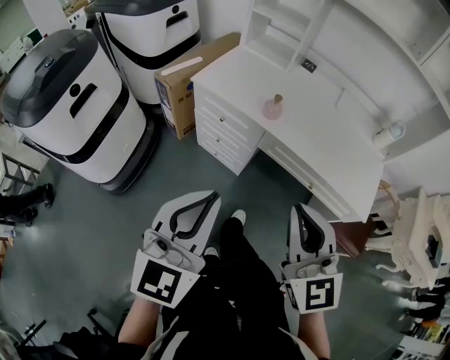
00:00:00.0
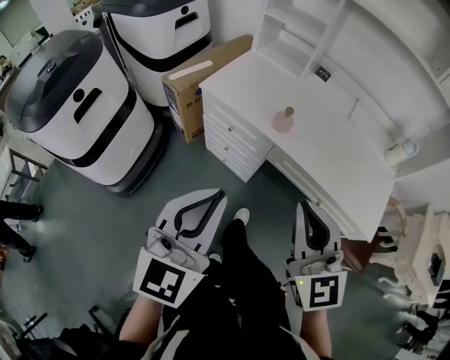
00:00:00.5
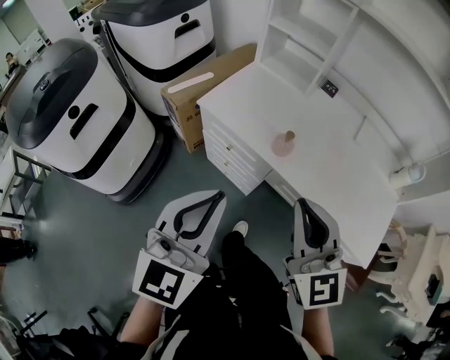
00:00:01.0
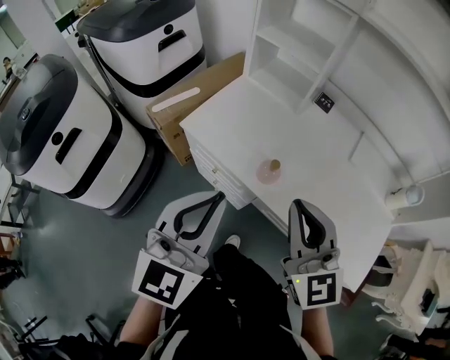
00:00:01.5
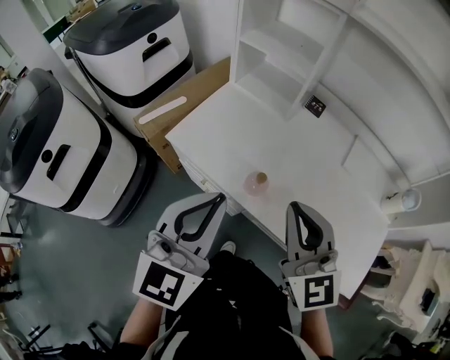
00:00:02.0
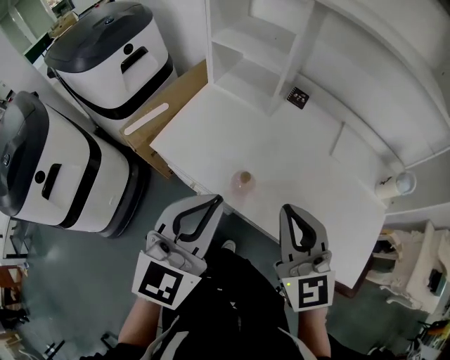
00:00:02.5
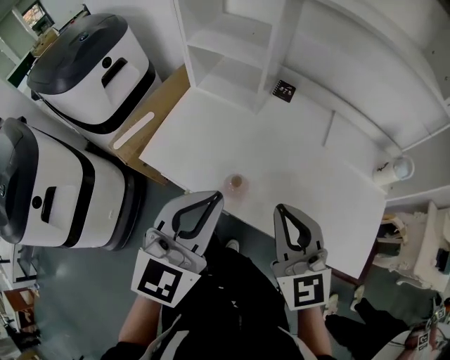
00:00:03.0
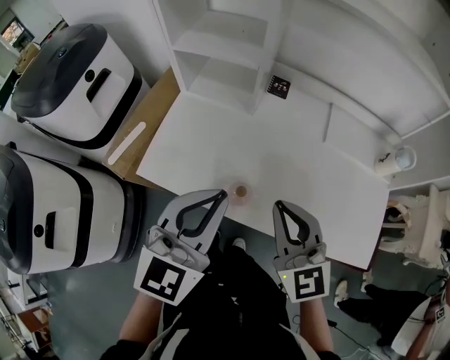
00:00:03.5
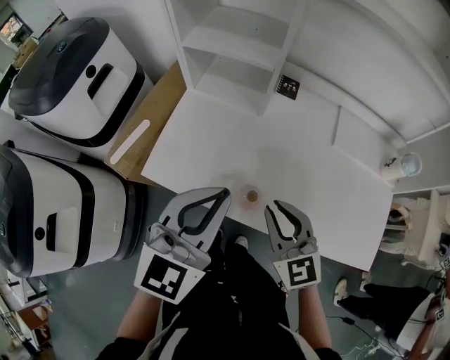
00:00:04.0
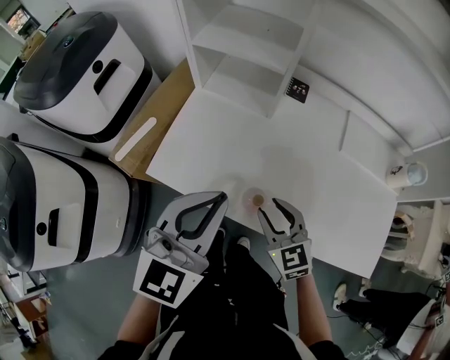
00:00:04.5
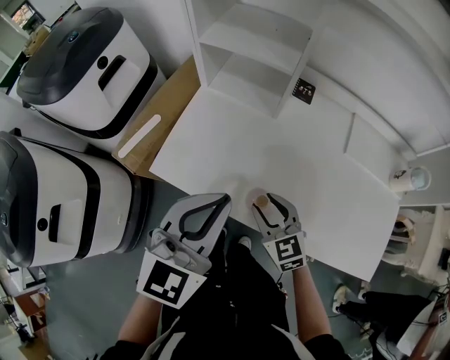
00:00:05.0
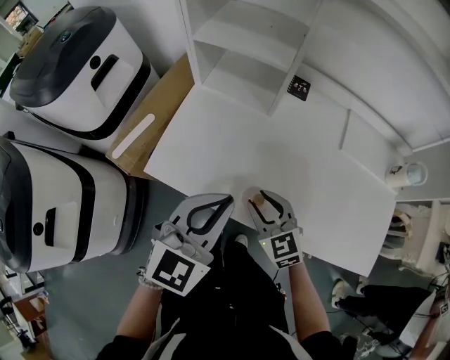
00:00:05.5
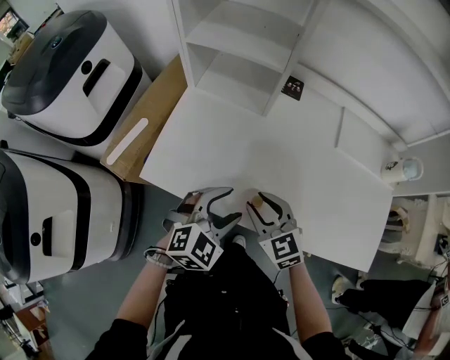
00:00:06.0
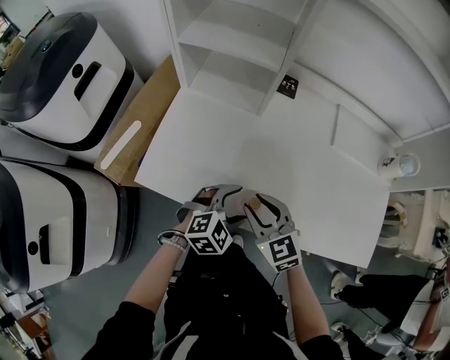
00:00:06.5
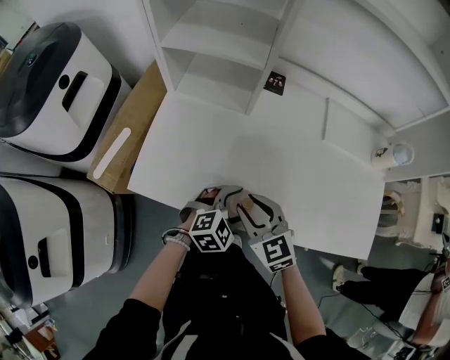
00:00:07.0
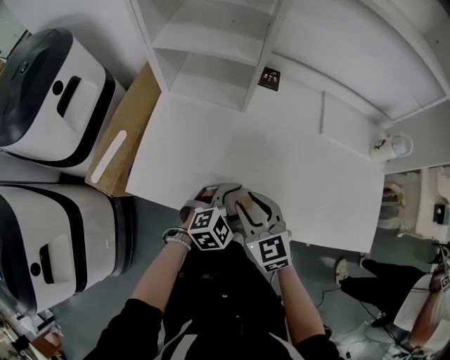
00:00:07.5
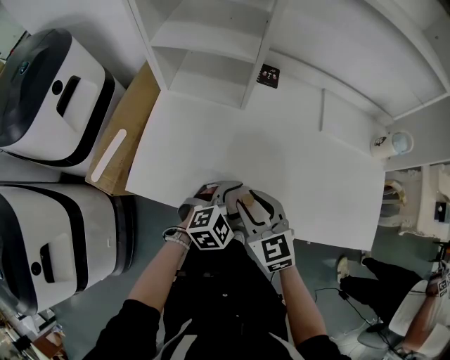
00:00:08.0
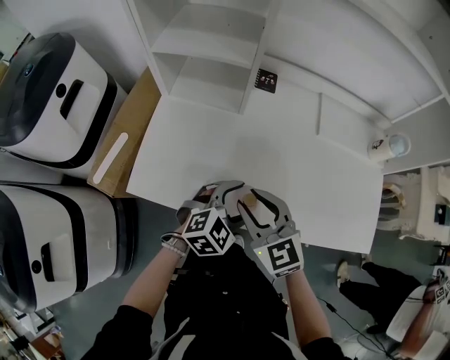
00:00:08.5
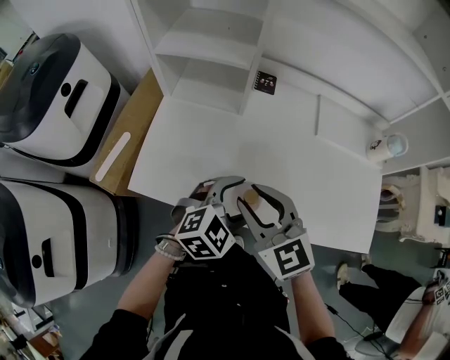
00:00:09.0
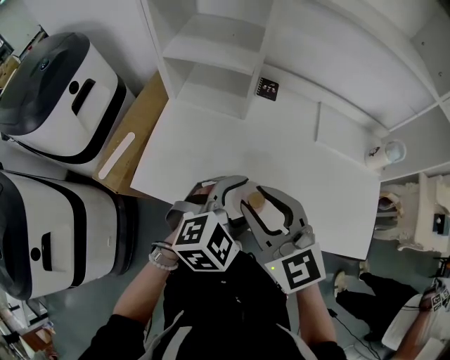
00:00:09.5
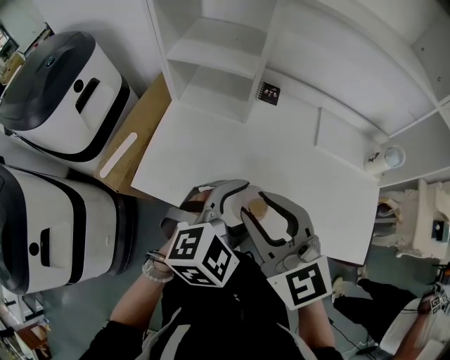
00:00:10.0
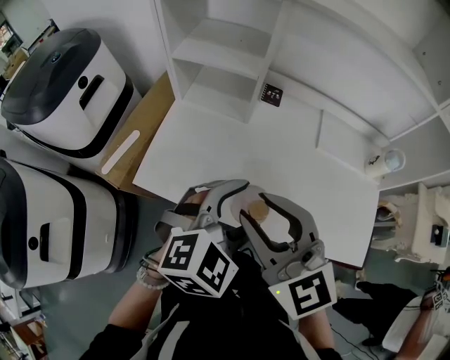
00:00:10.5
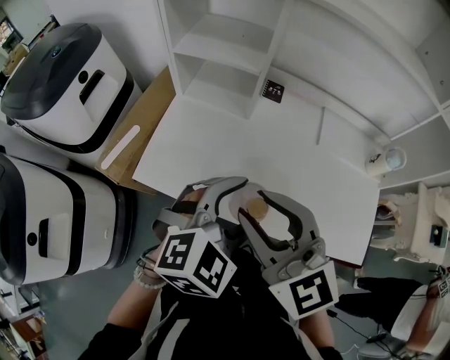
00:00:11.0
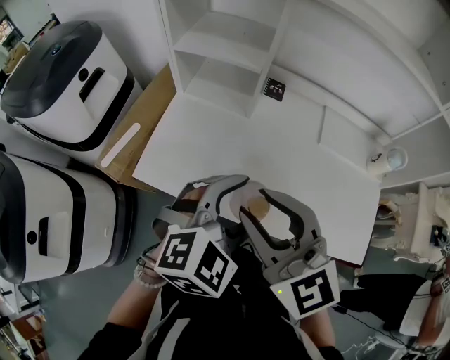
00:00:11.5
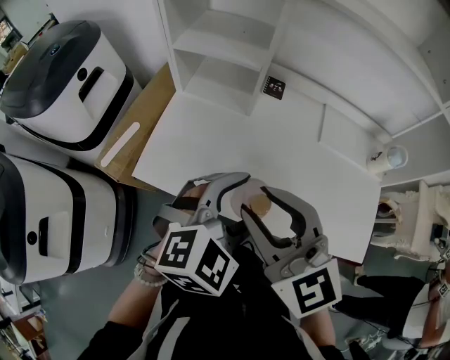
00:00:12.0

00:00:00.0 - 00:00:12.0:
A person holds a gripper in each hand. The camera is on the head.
00:00:00.0 - 00:00:02.0: The two grippers go approximately 30 cm forward.
00:00:02.0 - 00:00:04.0: The right gripper heads downward and forward, covering approximately 15 cm; the left gripper is displaced forward by about 10 cm, and turns by roughly 20 degrees.
00:00:04.0 - 00:00:06.0: The right gripper travels downward by approximately 10 cm, and opens up. The left gripper travels downward by some 20 cm, swivels about 30 degrees, and opens up.
00:00:06.0 - 00:00:08.0: The left gripper shifts some 10 cm downward and to the right.
00:00:08.0 - 00:00:10.0: Both grippers move upward, about 20 cm.
00:00:10.0 - 00:00:12.0: The grippers move only a little.

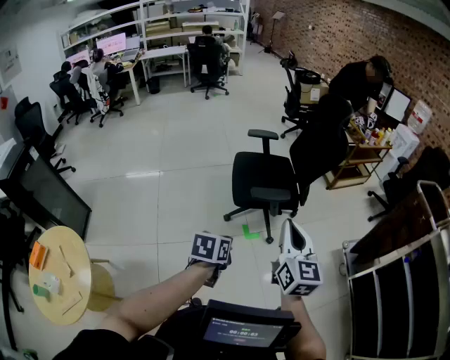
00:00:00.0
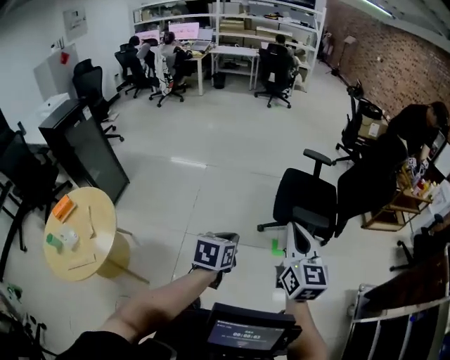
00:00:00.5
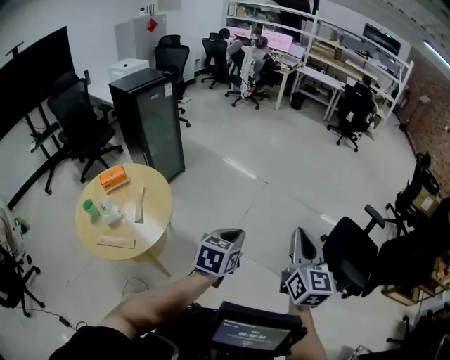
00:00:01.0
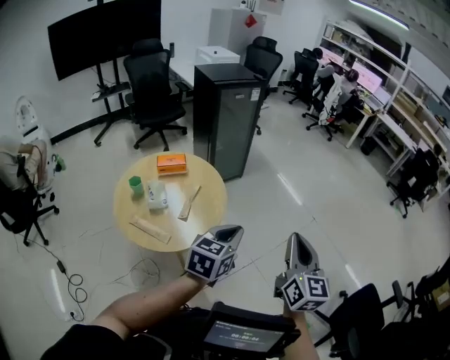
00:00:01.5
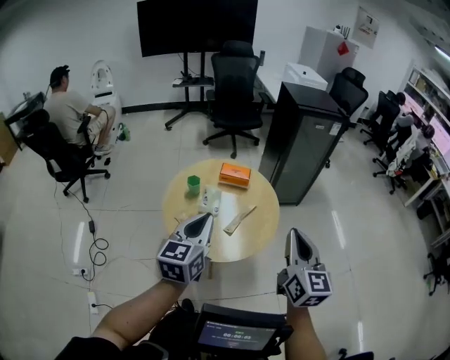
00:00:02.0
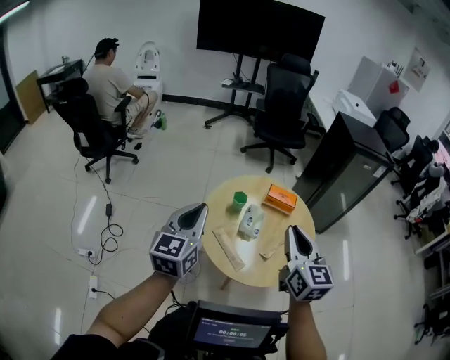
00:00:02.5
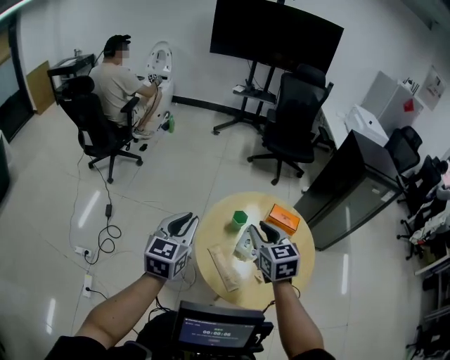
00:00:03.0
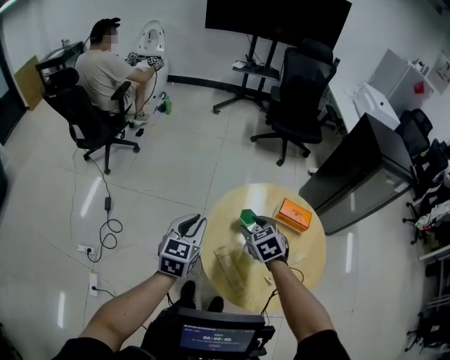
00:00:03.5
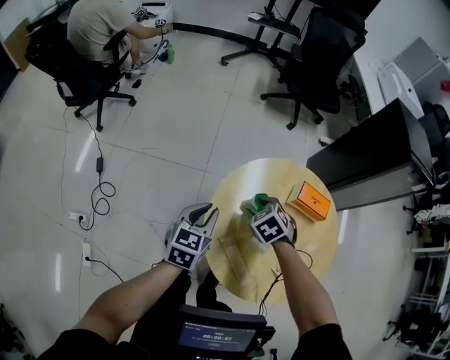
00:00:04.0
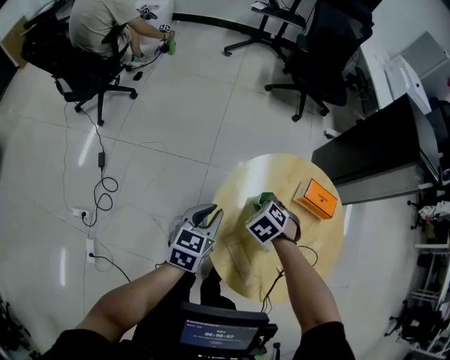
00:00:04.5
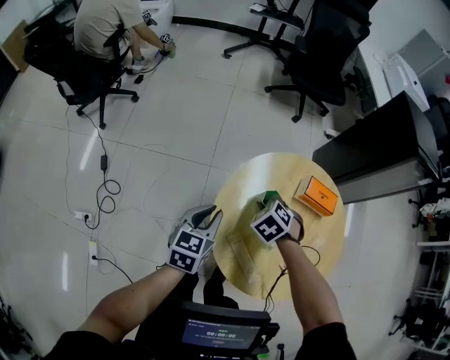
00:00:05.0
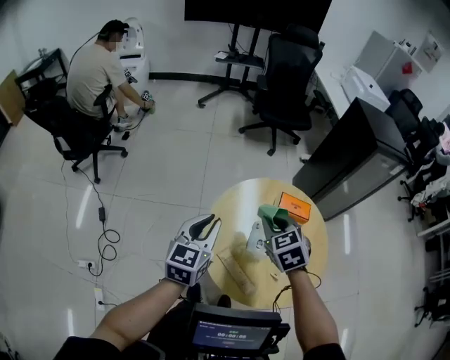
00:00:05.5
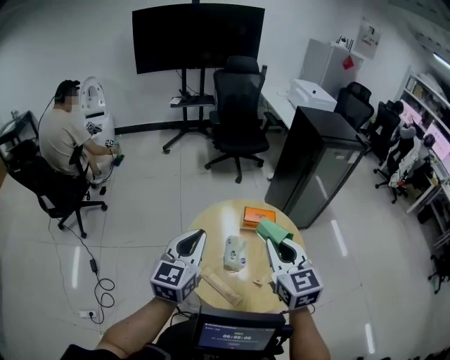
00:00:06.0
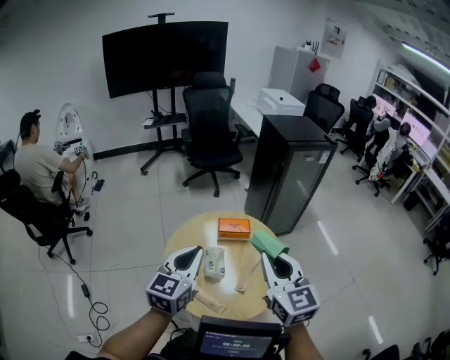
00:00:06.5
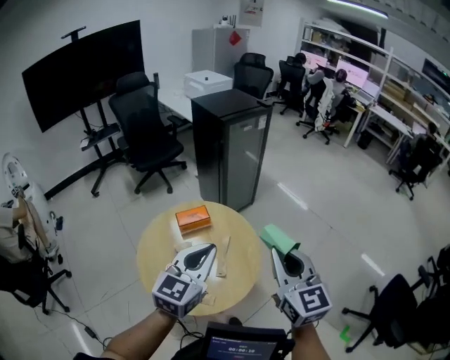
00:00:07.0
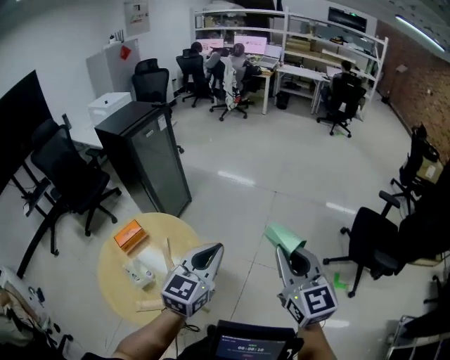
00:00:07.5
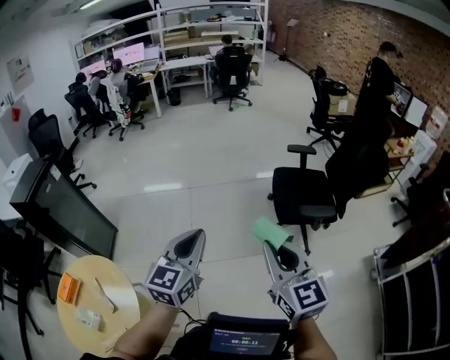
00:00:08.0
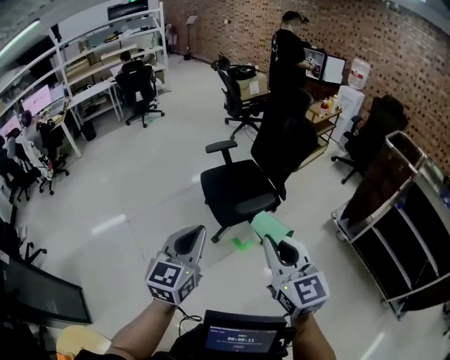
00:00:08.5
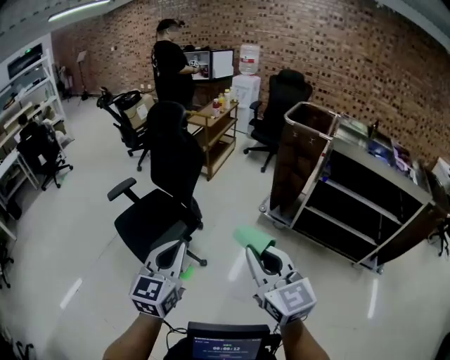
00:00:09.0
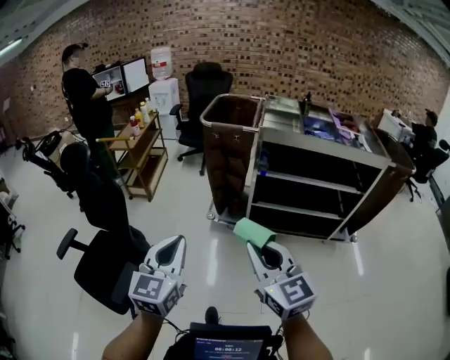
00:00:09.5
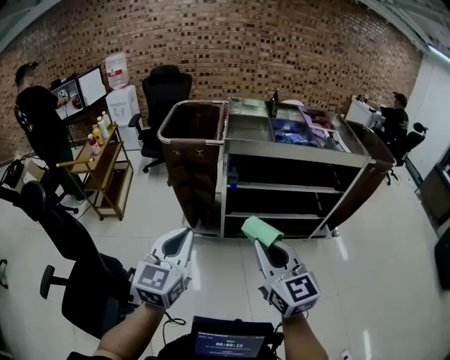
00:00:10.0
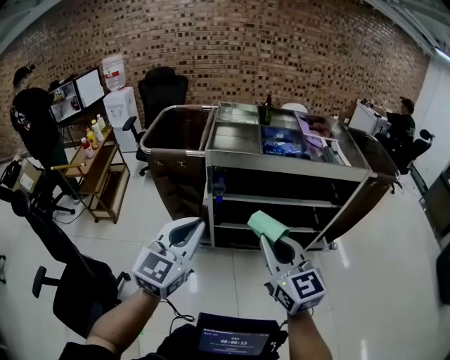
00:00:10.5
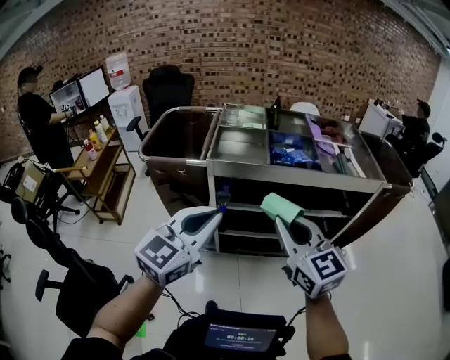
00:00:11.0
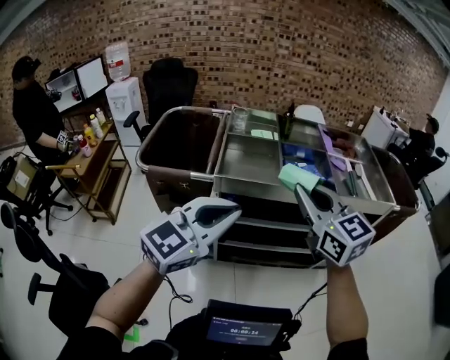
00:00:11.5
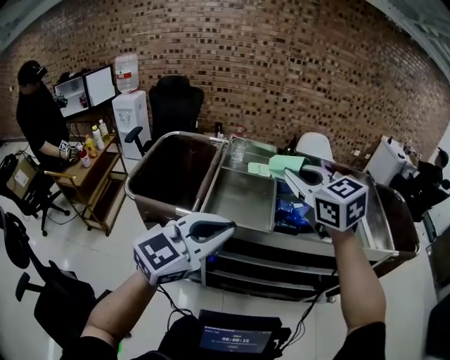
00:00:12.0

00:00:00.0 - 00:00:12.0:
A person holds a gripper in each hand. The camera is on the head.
00:00:00.0 - 00:00:02.0: The two grippers travel together, about 1 m. The left gripper angles its fingers upward, by some 30 degrees, while the right gripper turns by roughly 90 degrees.
00:00:02.0 - 00:00:04.0: The two grippers travel together, forward and to the left, approximately 70 cm. The grippers both shift downward by about 40 cm. The right gripper tilts its fingers about 60 degrees downward, and opens up. Meanwhile the left gripper swivels roughly 20 degrees.
00:00:04.0 - 00:00:06.0: The two grippers go roughly 50 cm upward, backward and to the right. The left gripper rotates about 30 degrees; the right gripper angles its fingers upward, by some 50 degrees, and closes up.
00:00:06.0 - 00:00:08.0: Both grippers are carried some 1 m. The left gripper turns by some 90 degrees; the right gripper turns by some 80 degrees.
00:00:08.0 - 00:00:10.0: The two grippers travel together, approximately 1.5 m. The right gripper changes its angle by some 90 degrees. Meanwhile the left gripper turns by about 90 degrees.
00:00:10.0 - 00:00:12.0: The pair of grippers is taken forward, about 80 cm. The left gripper rotates roughly 30 degrees. Meanwhile the right gripper changes its angle by about 30 degrees.

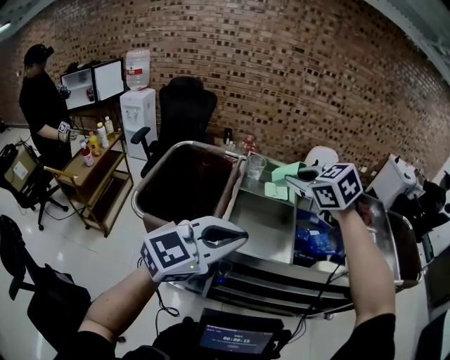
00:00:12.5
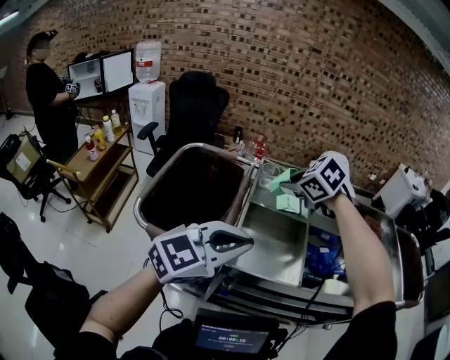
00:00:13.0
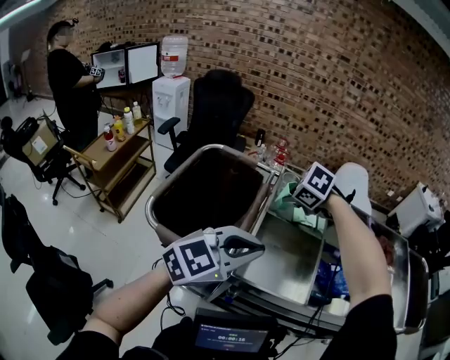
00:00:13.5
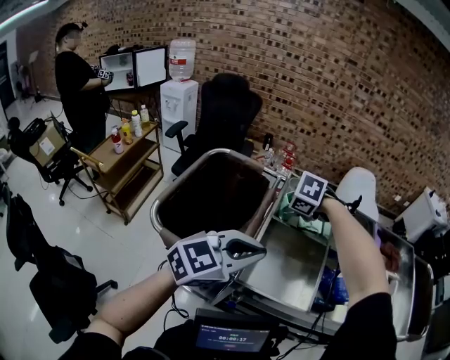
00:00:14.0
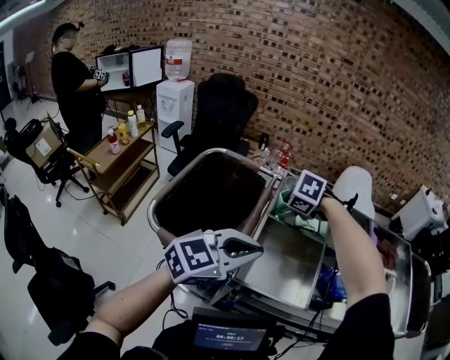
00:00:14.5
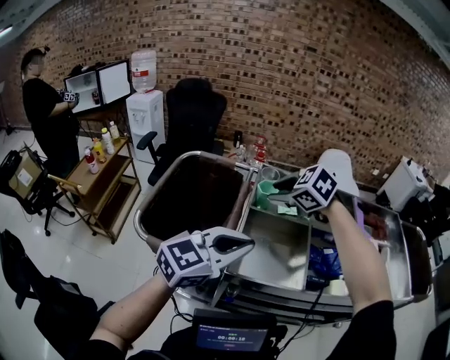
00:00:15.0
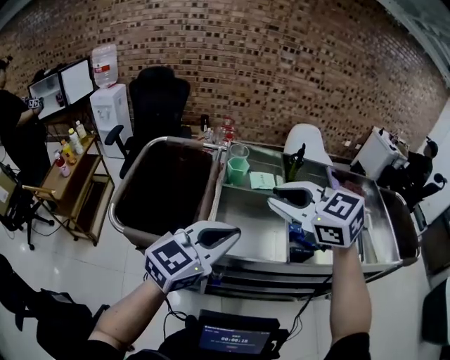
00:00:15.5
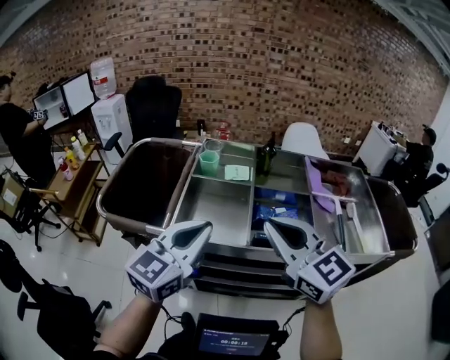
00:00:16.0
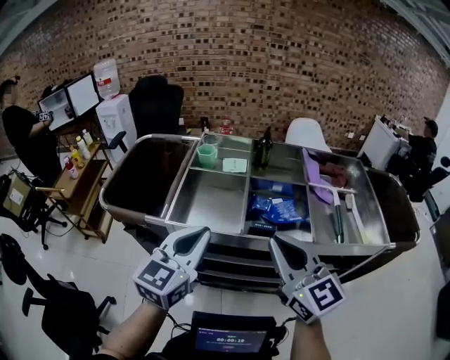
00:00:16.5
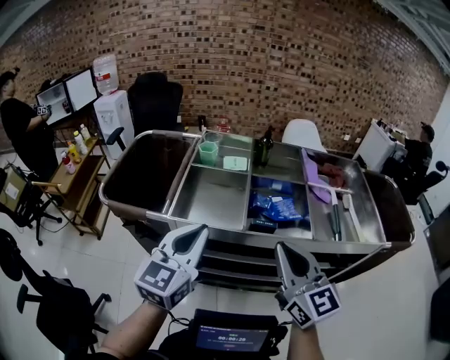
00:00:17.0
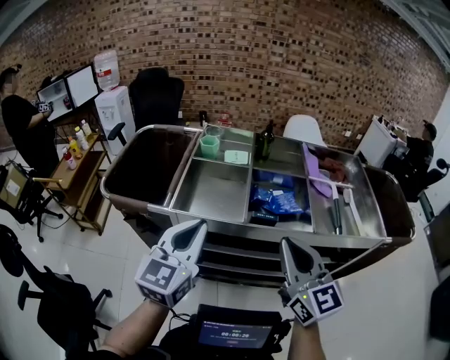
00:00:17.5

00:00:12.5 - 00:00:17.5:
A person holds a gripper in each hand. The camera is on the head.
00:00:12.5 - 00:00:15.0: The right gripper opens its fingers; the left gripper ends up some 15 cm from where it was.
00:00:15.0 - 00:00:17.5: The right gripper heads backward and to the right, covering about 60 cm, tilts its fingers about 50 degrees upward, and closes. The left gripper shifts approximately 30 cm to the right and backward, and changes its angle by approximately 30 degrees.
